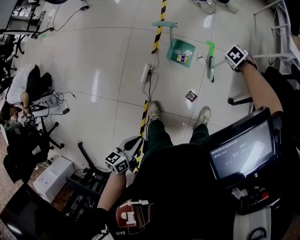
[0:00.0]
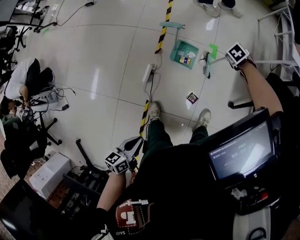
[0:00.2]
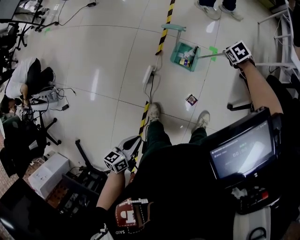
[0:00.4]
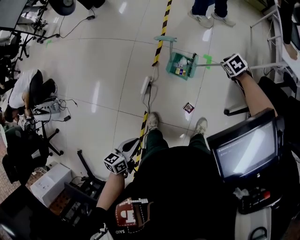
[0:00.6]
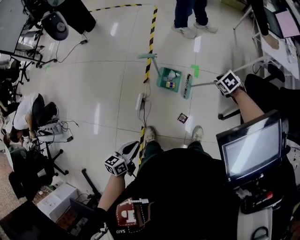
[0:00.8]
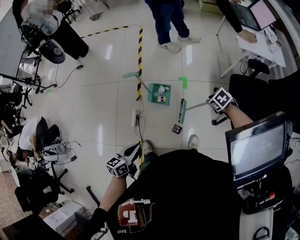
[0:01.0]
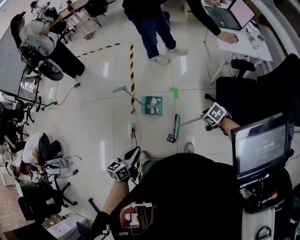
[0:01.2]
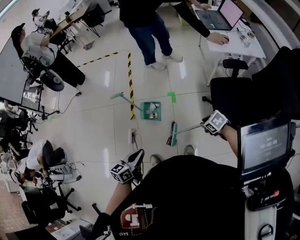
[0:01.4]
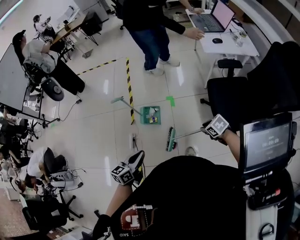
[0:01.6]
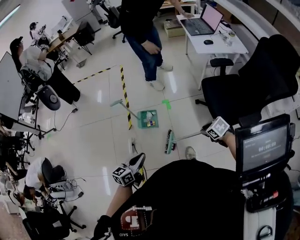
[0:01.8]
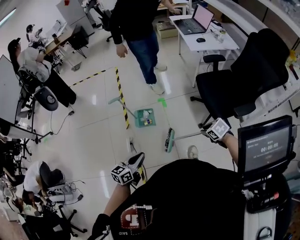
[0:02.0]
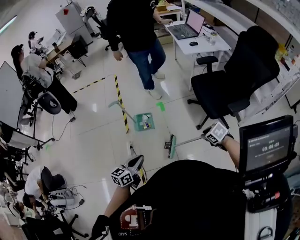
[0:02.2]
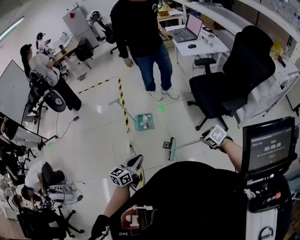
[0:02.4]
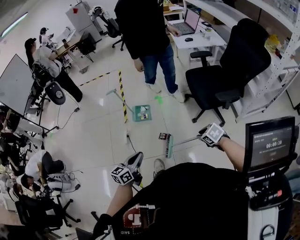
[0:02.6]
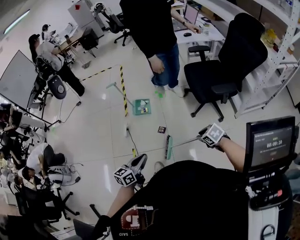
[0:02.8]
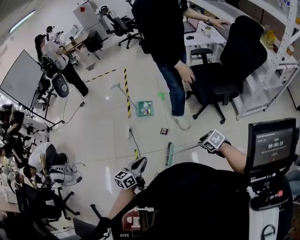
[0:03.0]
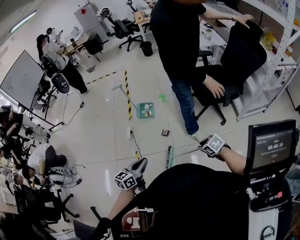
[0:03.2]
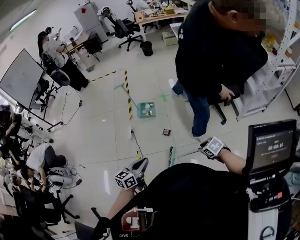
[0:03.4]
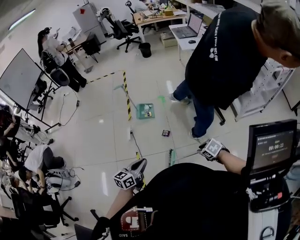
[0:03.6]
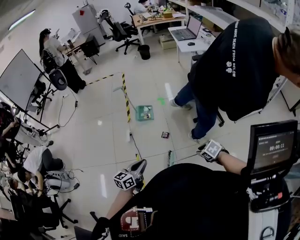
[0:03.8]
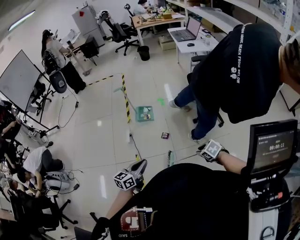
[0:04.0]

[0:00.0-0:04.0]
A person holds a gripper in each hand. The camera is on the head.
0:00.0 to 0:01.4: The left gripper shifts by some 30 cm, and swivels roughly 20 degrees.
0:01.4 to 0:02.6: The left gripper changes place by some 30 cm.
0:02.6 to 0:04.0: The left gripper ends up about 10 cm from where it was.

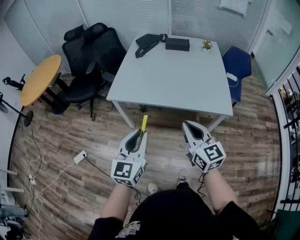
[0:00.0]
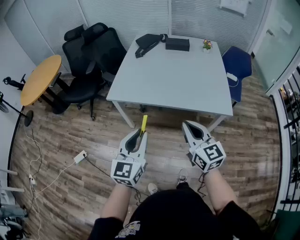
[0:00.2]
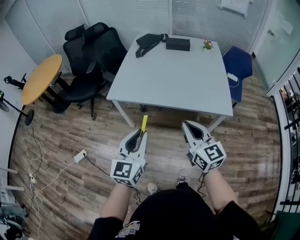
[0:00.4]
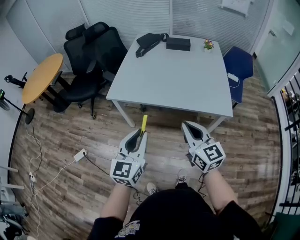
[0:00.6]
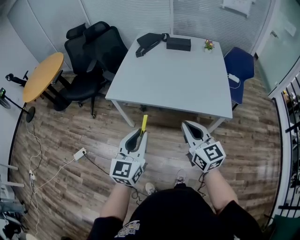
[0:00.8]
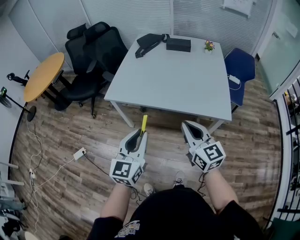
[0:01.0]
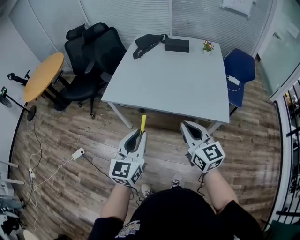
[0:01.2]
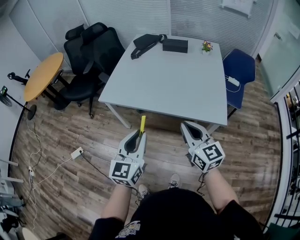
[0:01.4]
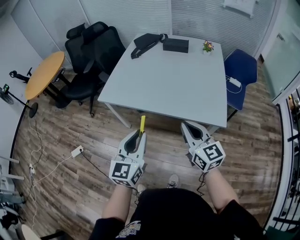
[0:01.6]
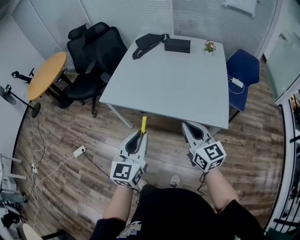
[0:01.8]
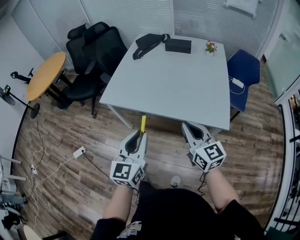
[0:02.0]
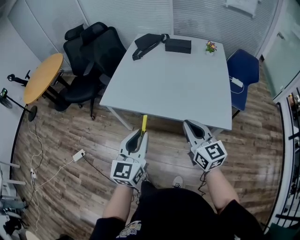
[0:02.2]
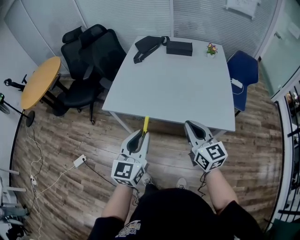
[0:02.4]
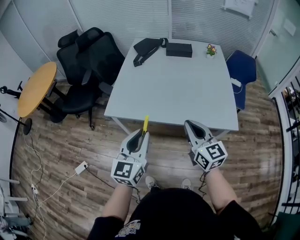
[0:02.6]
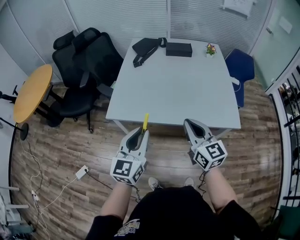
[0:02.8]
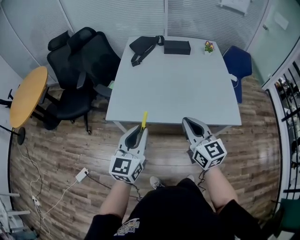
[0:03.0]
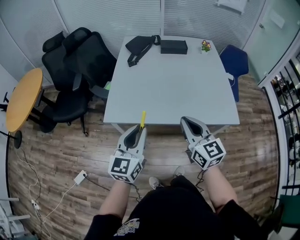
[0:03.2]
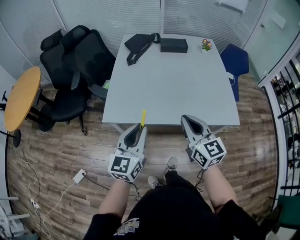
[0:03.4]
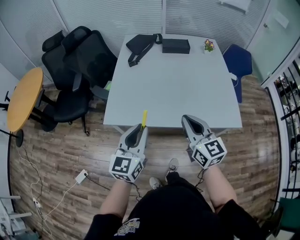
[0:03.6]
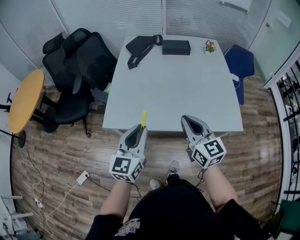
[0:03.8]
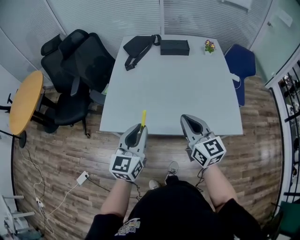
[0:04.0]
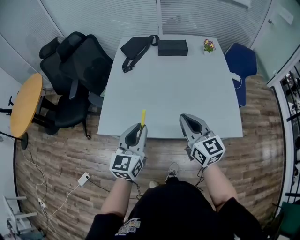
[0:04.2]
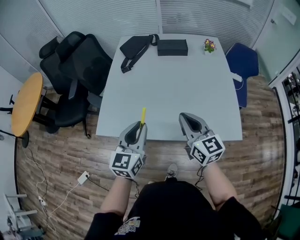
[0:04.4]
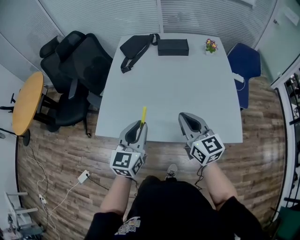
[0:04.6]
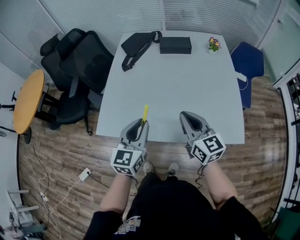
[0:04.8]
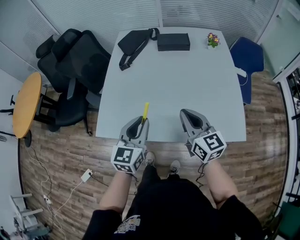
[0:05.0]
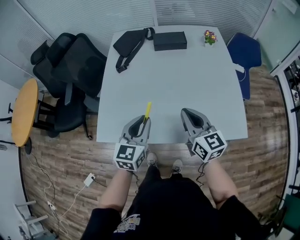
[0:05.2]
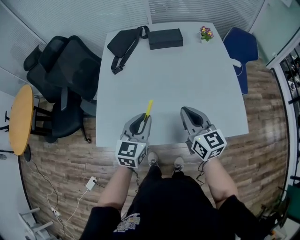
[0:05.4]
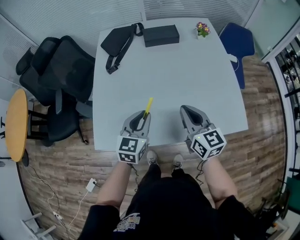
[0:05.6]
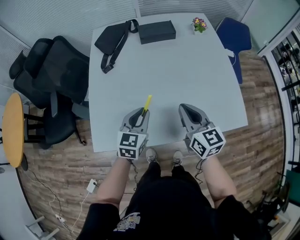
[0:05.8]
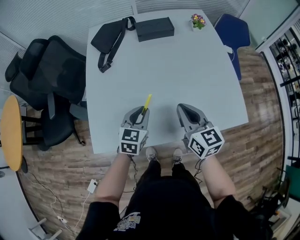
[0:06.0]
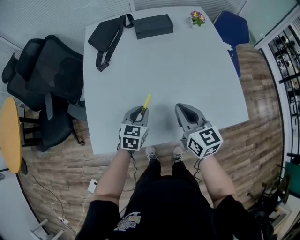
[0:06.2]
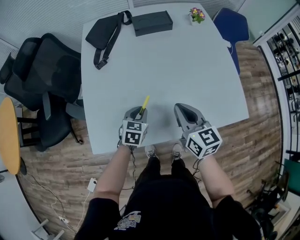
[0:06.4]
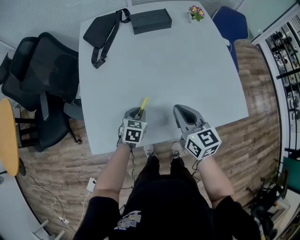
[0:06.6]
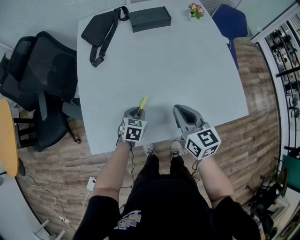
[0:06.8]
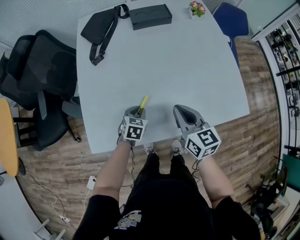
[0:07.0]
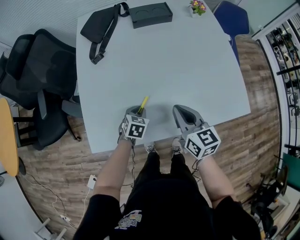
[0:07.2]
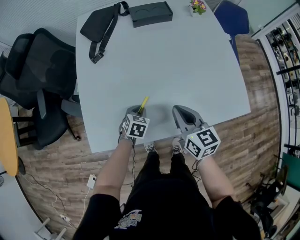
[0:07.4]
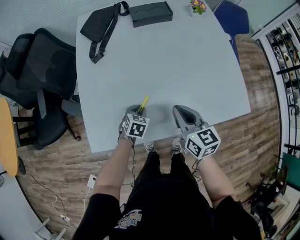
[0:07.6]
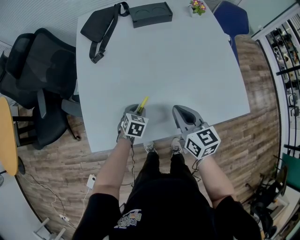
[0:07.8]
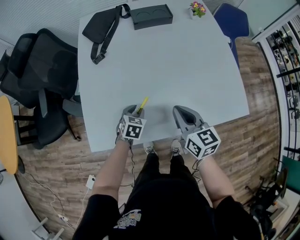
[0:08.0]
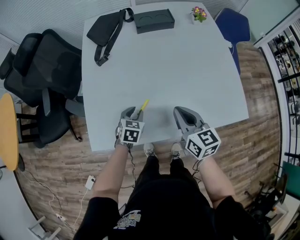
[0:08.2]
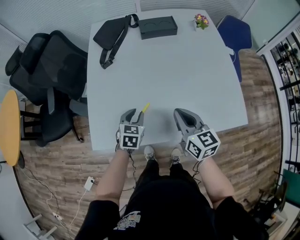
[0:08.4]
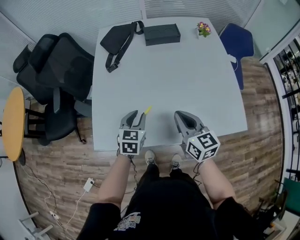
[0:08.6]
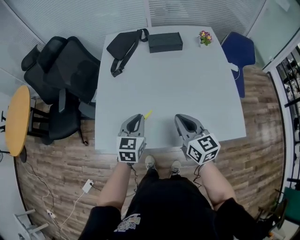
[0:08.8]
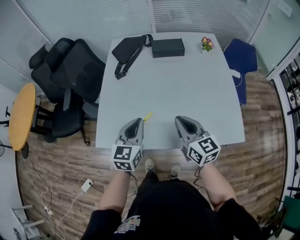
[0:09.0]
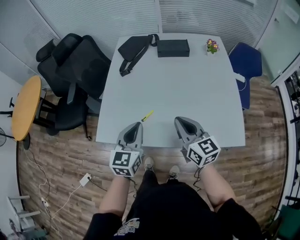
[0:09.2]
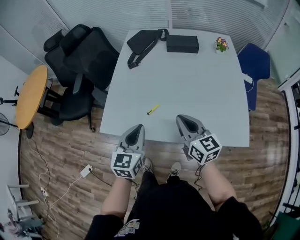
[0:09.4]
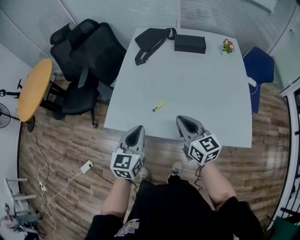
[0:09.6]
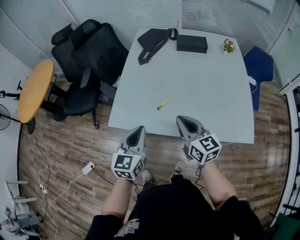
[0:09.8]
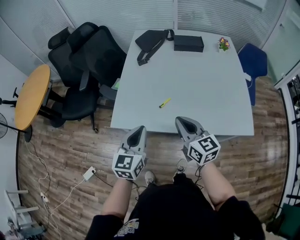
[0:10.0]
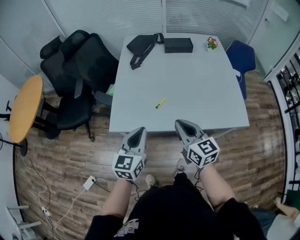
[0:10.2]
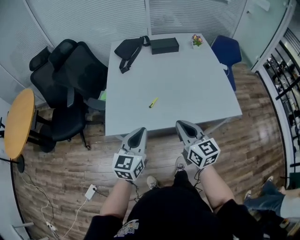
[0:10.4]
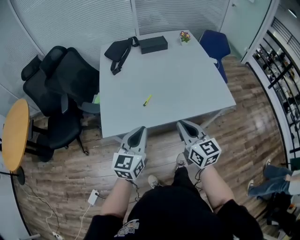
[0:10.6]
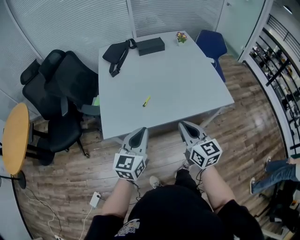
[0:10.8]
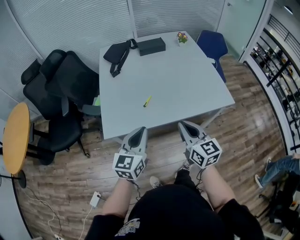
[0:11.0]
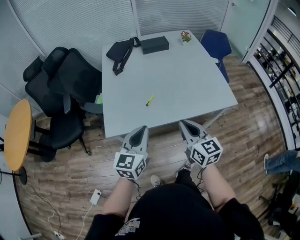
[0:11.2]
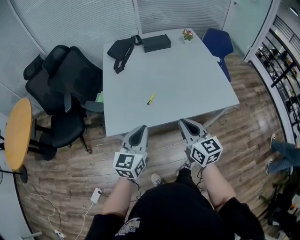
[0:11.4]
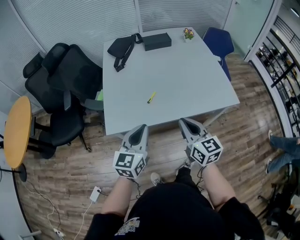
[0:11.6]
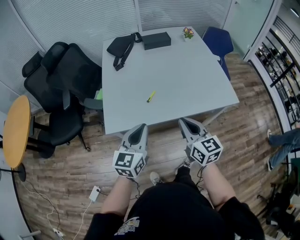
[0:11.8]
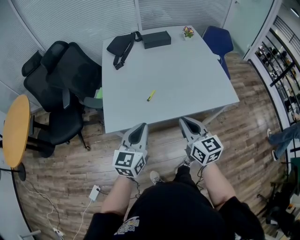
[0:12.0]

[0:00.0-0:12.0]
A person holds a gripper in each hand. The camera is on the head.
0:00.0 to 0:01.6: The right gripper shifts about 15 cm to the right and forward. Meanwhile the left gripper is displaced to the right by approximately 10 cm.
0:01.6 to 0:03.0: The two grippers go approximately 20 cm to the left and forward.
0:03.0 to 0:04.4: Both grippers travel together forward and to the right, some 15 cm.
0:04.4 to 0:06.0: The left gripper shifts some 20 cm forward and downward, and changes its angle by about 30 degrees, while the right gripper travels forward and downward by some 10 cm.
0:06.0 to 0:07.6: The left gripper travels downward by about 15 cm, and swivels some 30 degrees. Meanwhile the right gripper shifts roughly 5 cm downward.
0:07.6 to 0:09.0: The right gripper moves upward, some 10 cm. The left gripper shifts about 30 cm upward, and tilts its fingers some 40 degrees upward.
0:09.0 to 0:10.4: Both grippers move backward and to the left, some 20 cm.
0:10.4 to 0:12.0: The grippers make only small movements.

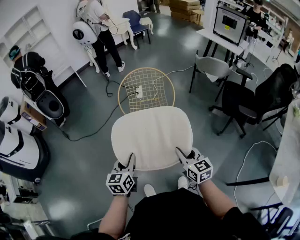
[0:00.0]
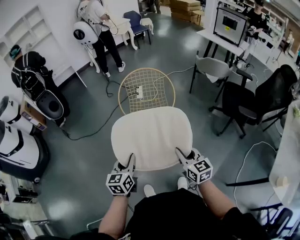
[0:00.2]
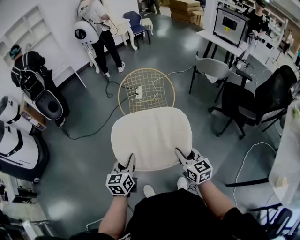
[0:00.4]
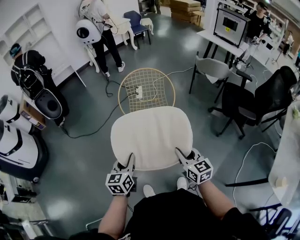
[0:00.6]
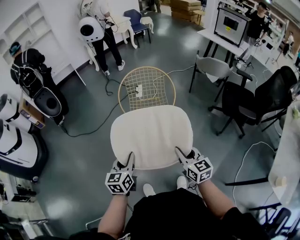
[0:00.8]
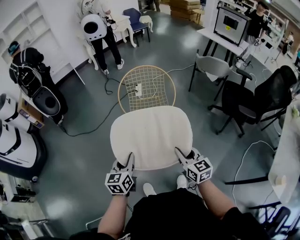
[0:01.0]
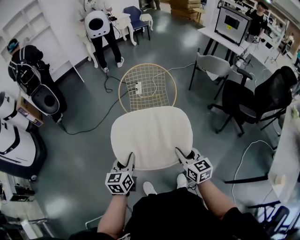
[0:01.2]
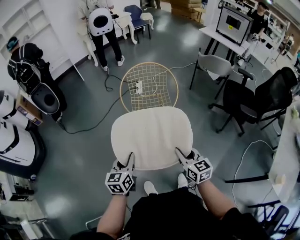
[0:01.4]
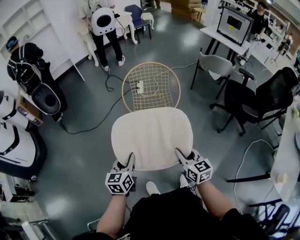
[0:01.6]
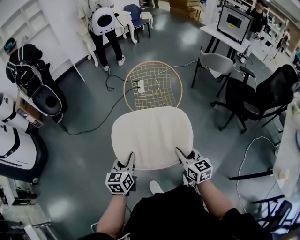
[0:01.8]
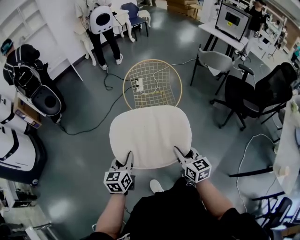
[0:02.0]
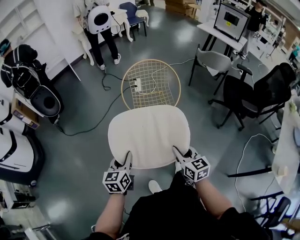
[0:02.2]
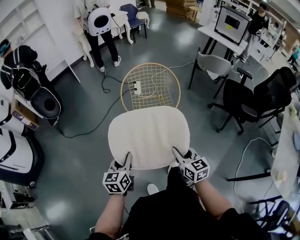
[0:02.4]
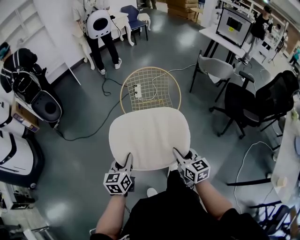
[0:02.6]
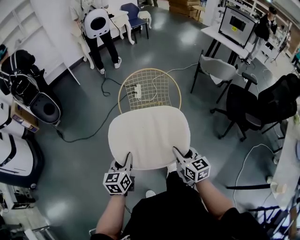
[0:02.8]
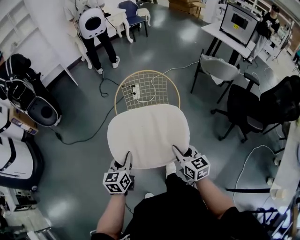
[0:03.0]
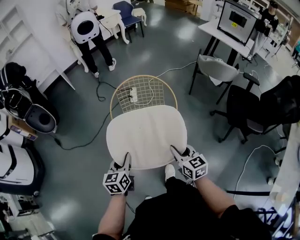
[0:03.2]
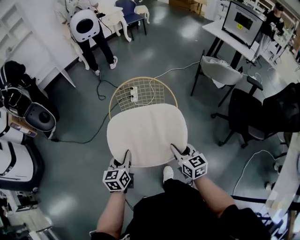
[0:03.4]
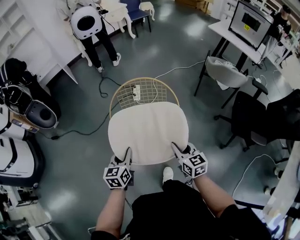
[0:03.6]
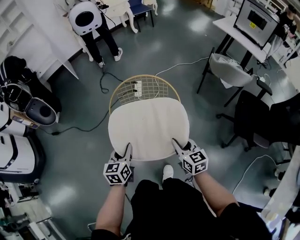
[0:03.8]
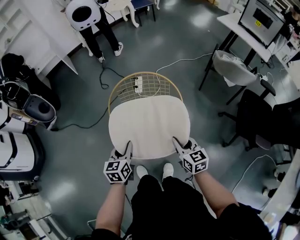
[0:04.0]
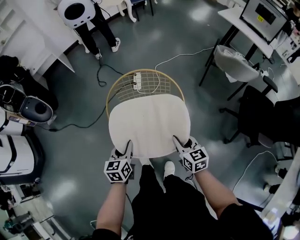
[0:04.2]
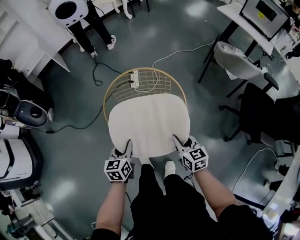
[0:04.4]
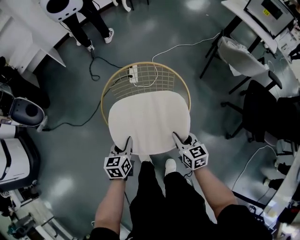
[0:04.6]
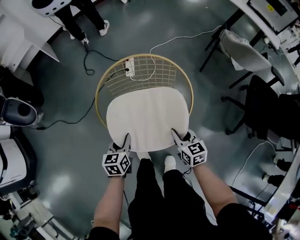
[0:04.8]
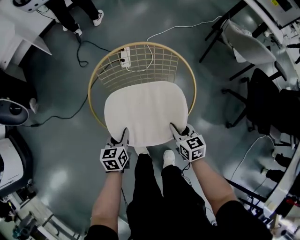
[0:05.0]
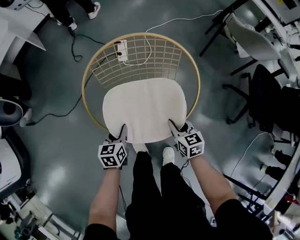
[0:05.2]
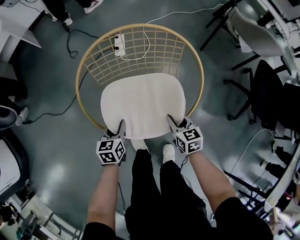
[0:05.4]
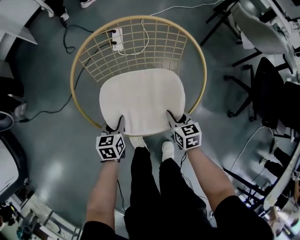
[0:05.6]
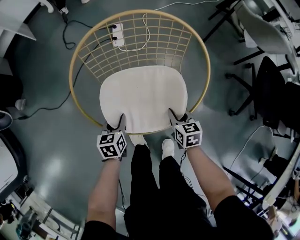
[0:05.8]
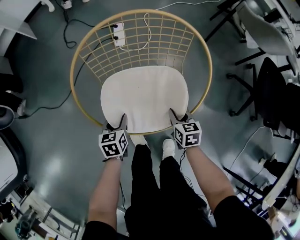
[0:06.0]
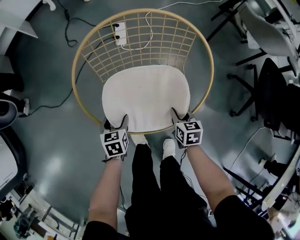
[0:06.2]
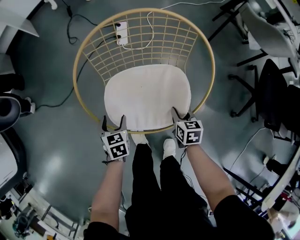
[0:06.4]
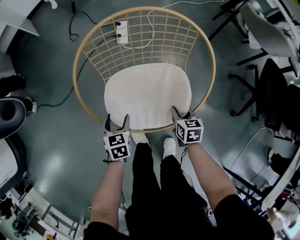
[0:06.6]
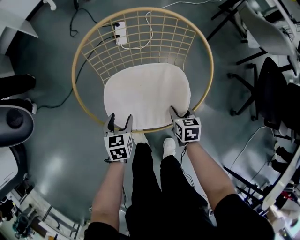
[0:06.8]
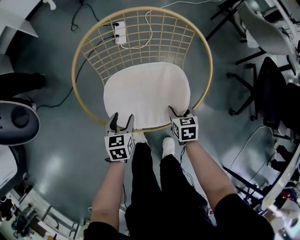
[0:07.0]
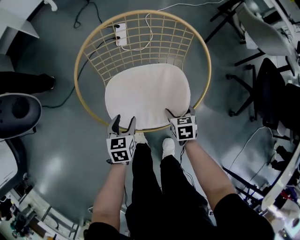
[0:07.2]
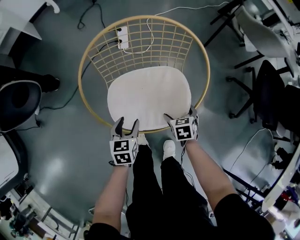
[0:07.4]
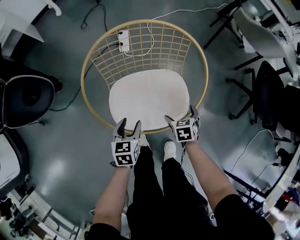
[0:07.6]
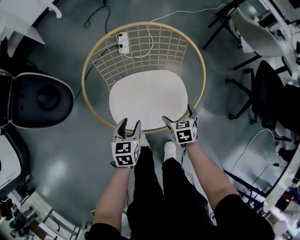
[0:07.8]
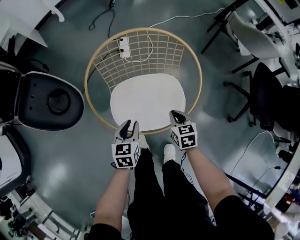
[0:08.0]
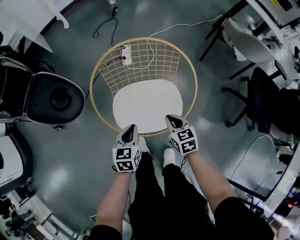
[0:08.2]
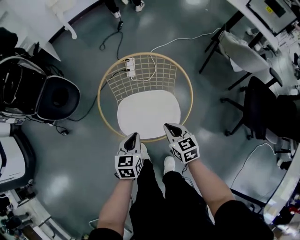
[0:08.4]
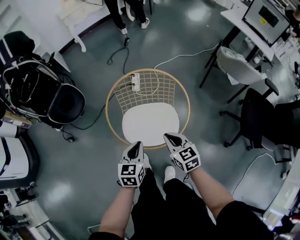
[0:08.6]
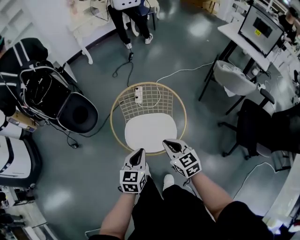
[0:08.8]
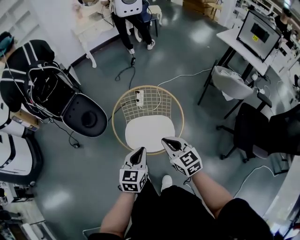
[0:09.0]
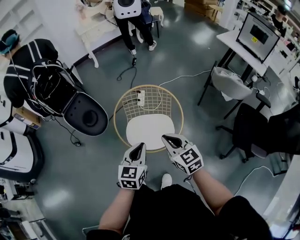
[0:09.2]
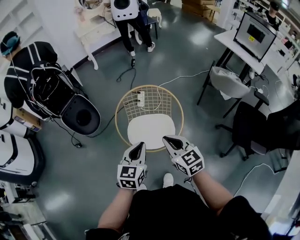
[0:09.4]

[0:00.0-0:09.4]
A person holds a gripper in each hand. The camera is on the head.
0:00.0 to 0:01.6: The two grippers go roughly 10 cm to the left.
0:01.6 to 0:03.2: Both grippers travel together forward, roughly 25 cm.
0:03.2 to 0:04.8: Both grippers move forward and downward, some 30 cm.
0:04.8 to 0:06.2: The grippers both shift downward by approximately 20 cm. The right gripper rotates approximately 20 degrees, while the left gripper opens up.
0:06.2 to 0:07.8: The right gripper opens. The left gripper shifts roughly 10 cm upward and to the right.
0:07.8 to 0:09.4: Both grippers travel together upward, about 50 cm. The right gripper tips its fingers upward by about 40 degrees, and closes; the left gripper swivels approximately 20 degrees, and closes up.
